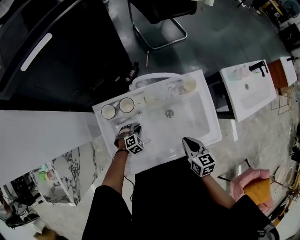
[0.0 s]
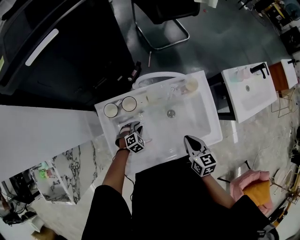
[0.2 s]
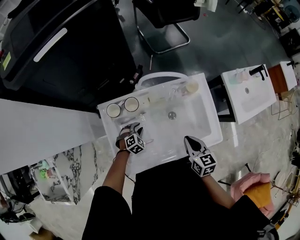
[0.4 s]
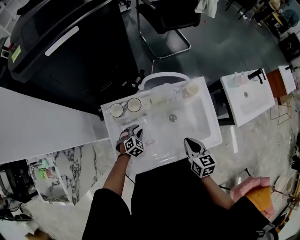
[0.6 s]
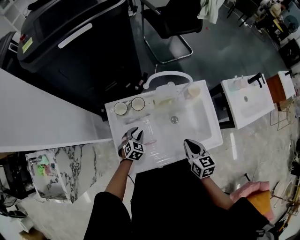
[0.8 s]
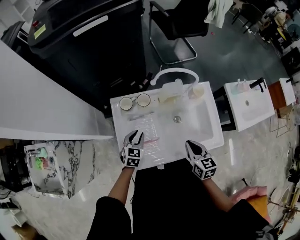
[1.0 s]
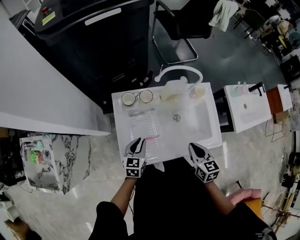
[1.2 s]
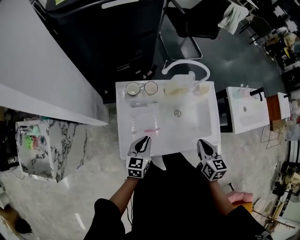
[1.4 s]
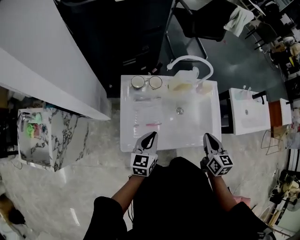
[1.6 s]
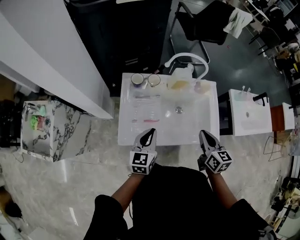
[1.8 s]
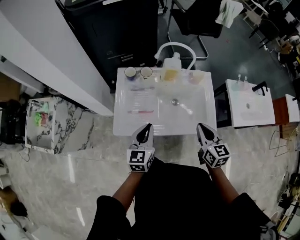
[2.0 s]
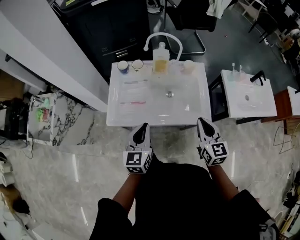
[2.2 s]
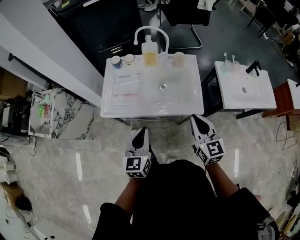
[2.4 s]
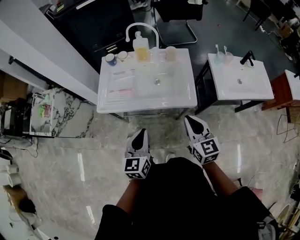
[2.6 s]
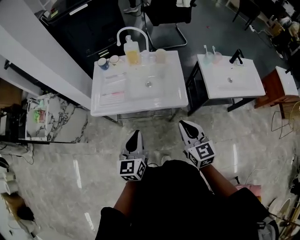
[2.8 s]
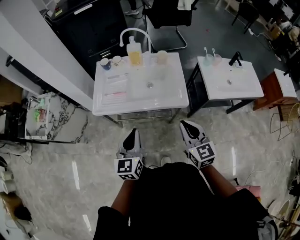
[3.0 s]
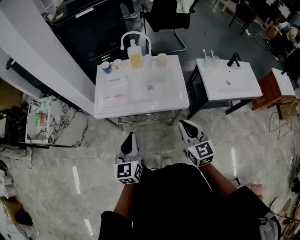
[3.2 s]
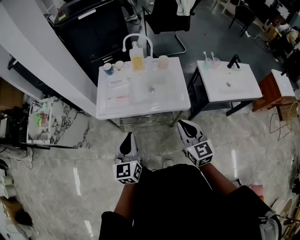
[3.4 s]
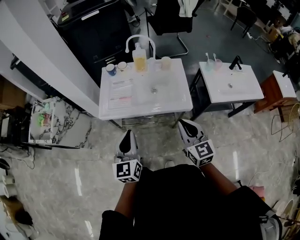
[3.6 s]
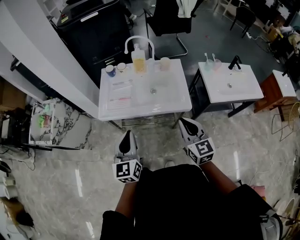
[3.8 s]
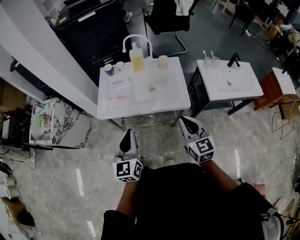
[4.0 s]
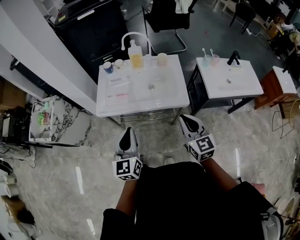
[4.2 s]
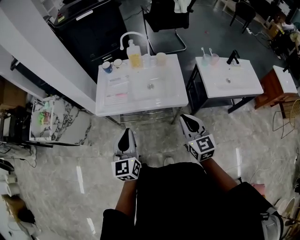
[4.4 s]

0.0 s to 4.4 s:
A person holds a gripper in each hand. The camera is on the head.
0.0 to 1.4 s: The left gripper shifts approximately 25 cm upward and backward, and rotates around the line of its fingers by some 60 degrees, counterclockwise from behind. The right gripper is displaced upward and backward by some 10 cm.
1.4 to 3.0 s: The right gripper travels backward and to the right by some 30 cm, and changes its angle by about 30 degrees, while the left gripper goes roughly 40 cm backward, to the right and upward, and changes its angle by approximately 20 degrees.
3.0 to 4.4 s: The left gripper moves roughly 5 cm.

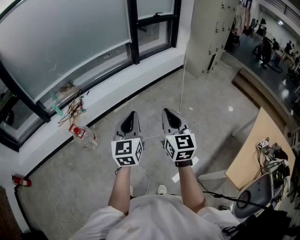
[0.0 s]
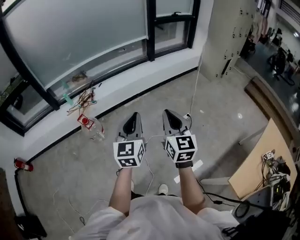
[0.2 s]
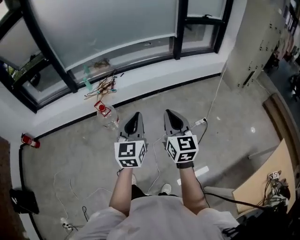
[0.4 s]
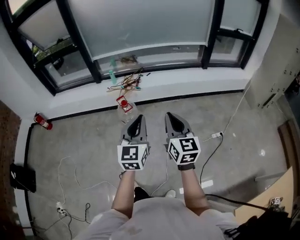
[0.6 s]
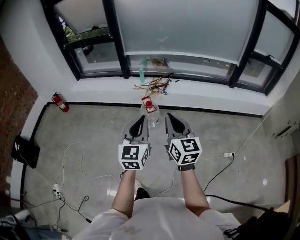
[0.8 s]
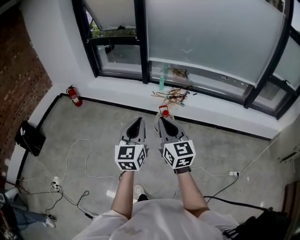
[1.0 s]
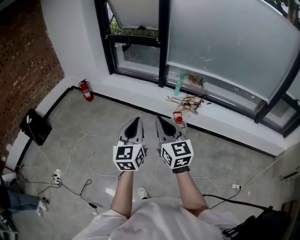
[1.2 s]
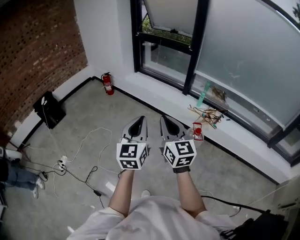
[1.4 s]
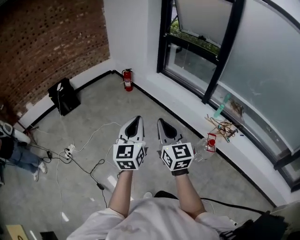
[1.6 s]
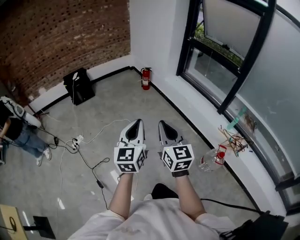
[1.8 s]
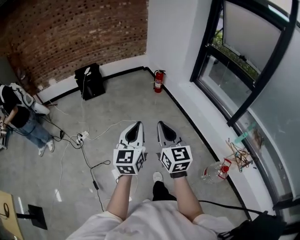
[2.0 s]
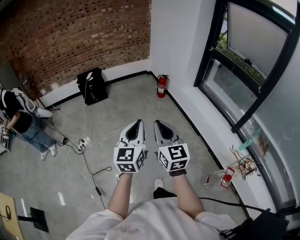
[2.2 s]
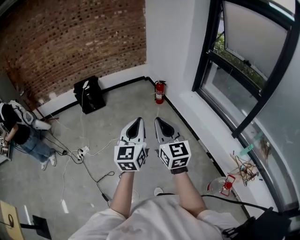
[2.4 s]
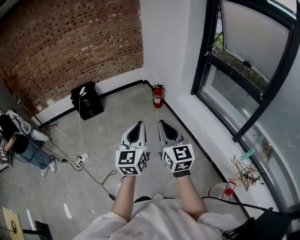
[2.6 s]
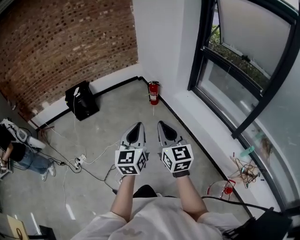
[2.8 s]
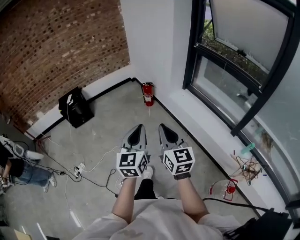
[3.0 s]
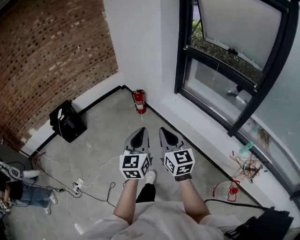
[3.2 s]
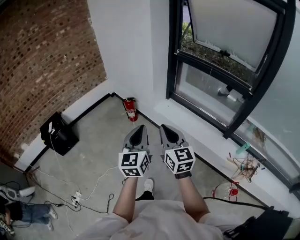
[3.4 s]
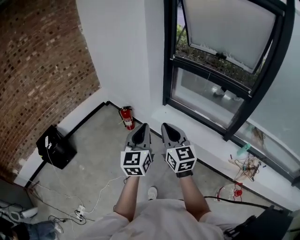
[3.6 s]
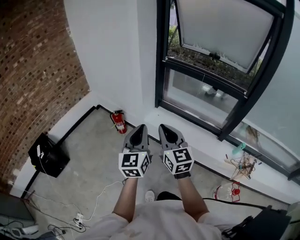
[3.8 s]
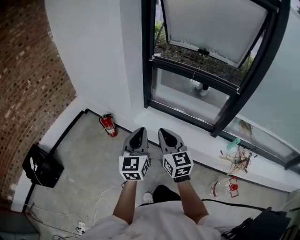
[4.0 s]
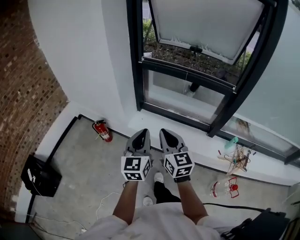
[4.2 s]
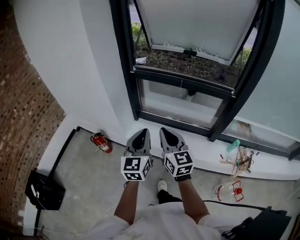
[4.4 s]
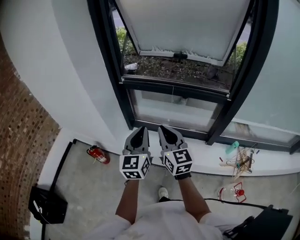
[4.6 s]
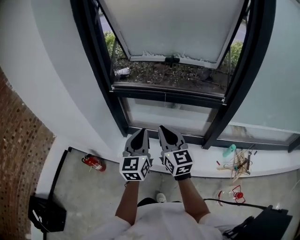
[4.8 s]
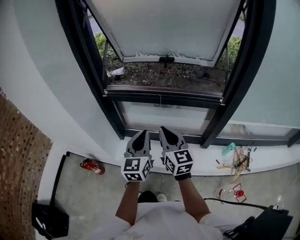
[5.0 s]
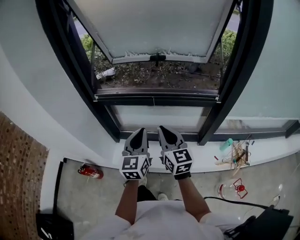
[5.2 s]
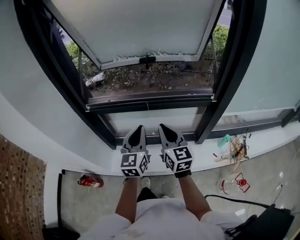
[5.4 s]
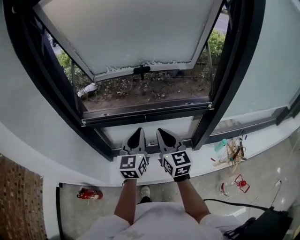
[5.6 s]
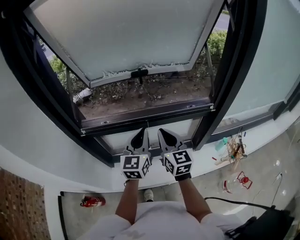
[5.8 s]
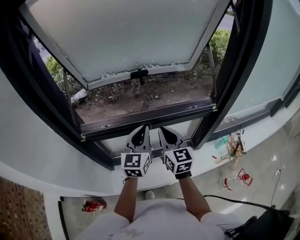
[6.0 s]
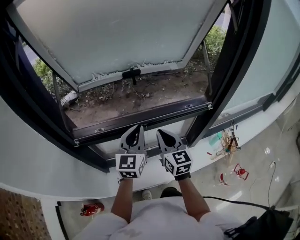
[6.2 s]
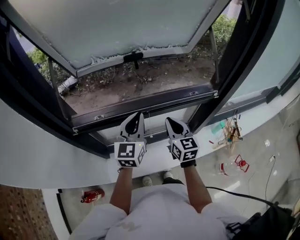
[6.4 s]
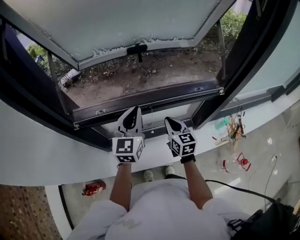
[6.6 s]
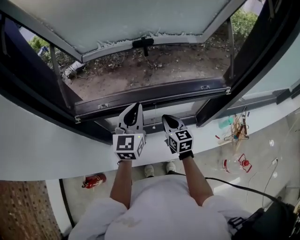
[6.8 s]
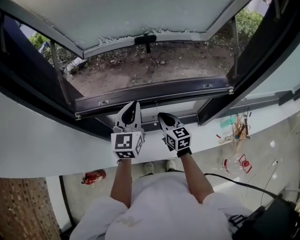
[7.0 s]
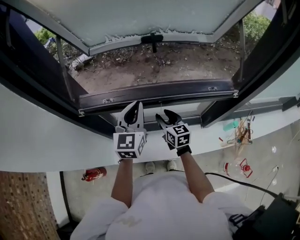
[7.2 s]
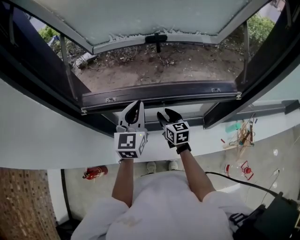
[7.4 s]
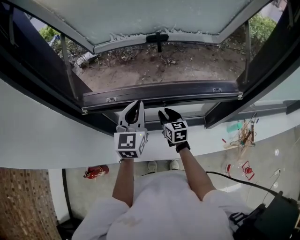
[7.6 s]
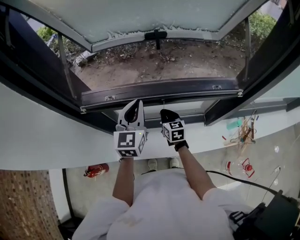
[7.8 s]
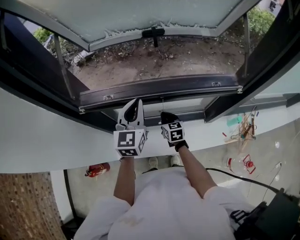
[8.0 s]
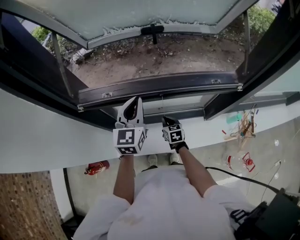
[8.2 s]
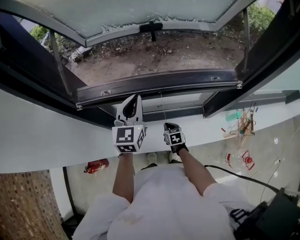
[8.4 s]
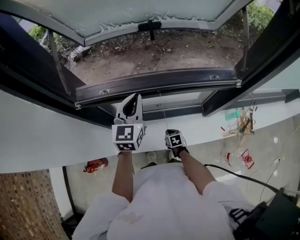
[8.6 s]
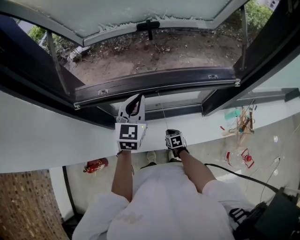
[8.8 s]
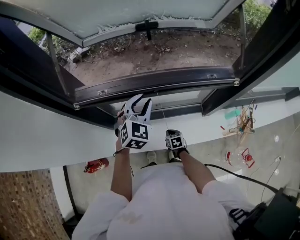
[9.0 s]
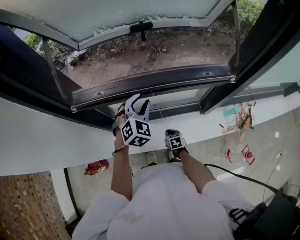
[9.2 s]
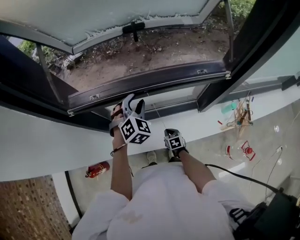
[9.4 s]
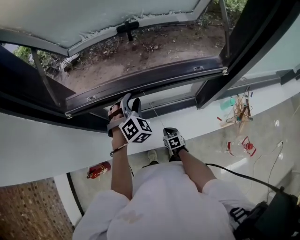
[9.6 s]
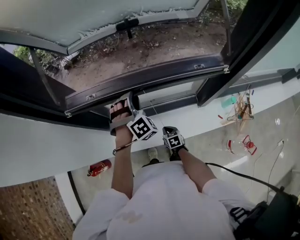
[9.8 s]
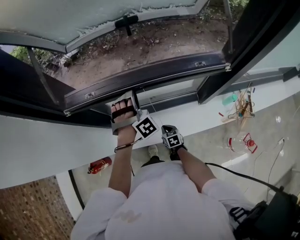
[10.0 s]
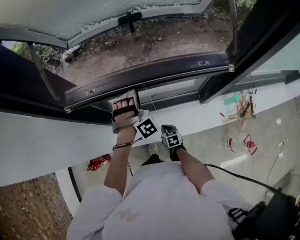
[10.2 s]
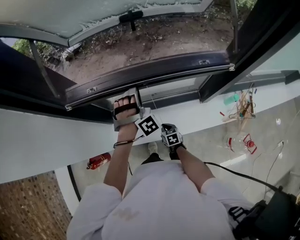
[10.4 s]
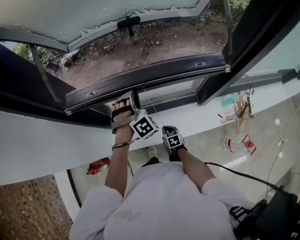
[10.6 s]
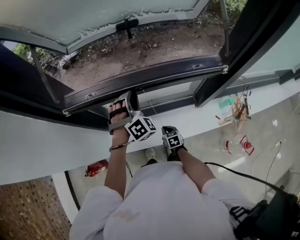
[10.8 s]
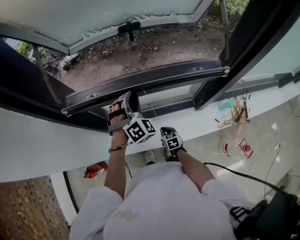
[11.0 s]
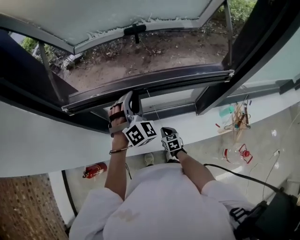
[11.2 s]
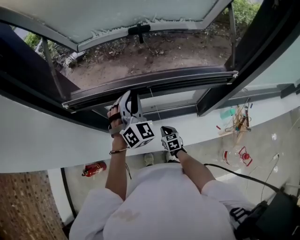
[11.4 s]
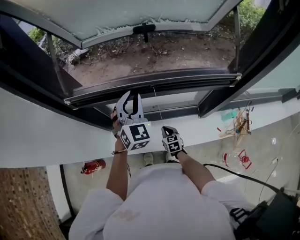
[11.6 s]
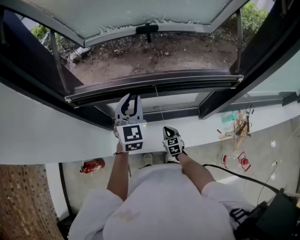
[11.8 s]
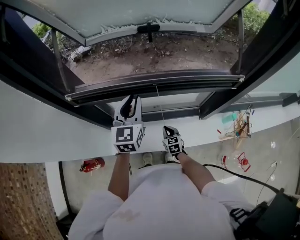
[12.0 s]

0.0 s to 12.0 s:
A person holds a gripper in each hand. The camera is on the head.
0.0 to 1.6 s: The two grippers travel together, roughly 90 cm. The left gripper swivels some 80 degrees. Meanwhile the right gripper rotates some 80 degrees.
1.6 to 3.0 s: The two grippers travel together, forward, roughly 40 cm.
3.0 to 4.4 s: Both grippers are carried about 50 cm. The right gripper changes its angle by approximately 40 degrees, while the left gripper changes its angle by roughly 40 degrees.
4.4 to 6.0 s: The pair of grippers is taken approximately 40 cm. The right gripper rotates some 30 degrees, while the left gripper swivels approximately 30 degrees.
6.0 to 7.6 s: The left gripper shifts about 10 cm to the left and forward; the right gripper goes about 25 cm downward and forward, turns by approximately 20 degrees, and opens.
7.6 to 9.0 s: The right gripper travels downward and backward by some 25 cm, rotates roughly 30 degrees, and closes its fingers, while the left gripper moves downward and to the right, about 10 cm, and changes its angle by approximately 30 degrees.
9.0 to 10.4 s: The left gripper heads downward, covering some 5 cm, and twists some 50 degrees clockwise, seen from behind.
10.4 to 12.0 s: The left gripper is displaced upward and to the left by approximately 10 cm, and rotates around the line of its fingers by approximately 80 degrees, counterclockwise from behind. The right gripper travels upward by roughly 5 cm.

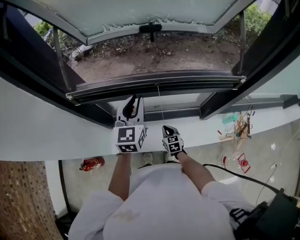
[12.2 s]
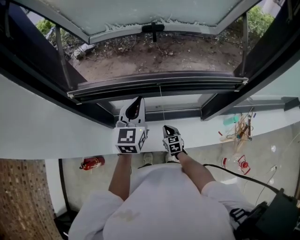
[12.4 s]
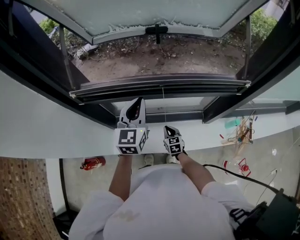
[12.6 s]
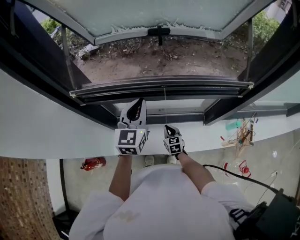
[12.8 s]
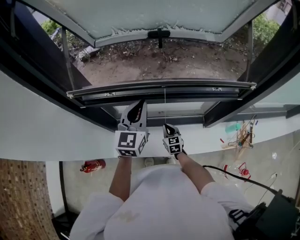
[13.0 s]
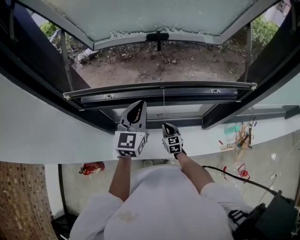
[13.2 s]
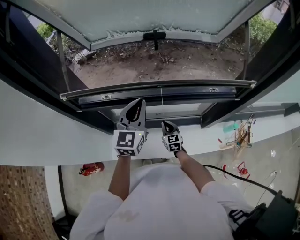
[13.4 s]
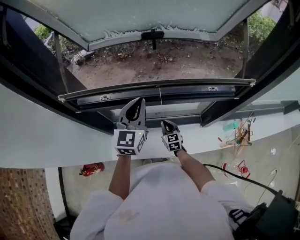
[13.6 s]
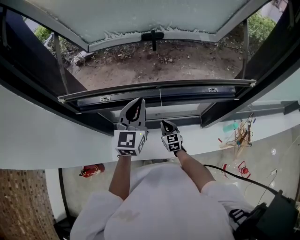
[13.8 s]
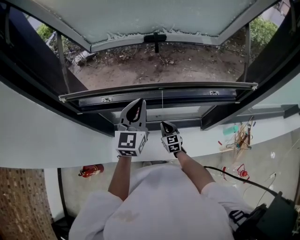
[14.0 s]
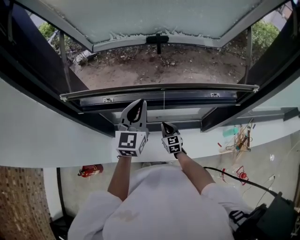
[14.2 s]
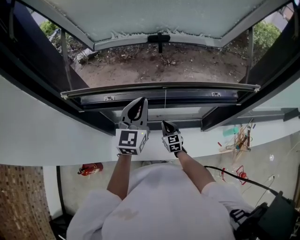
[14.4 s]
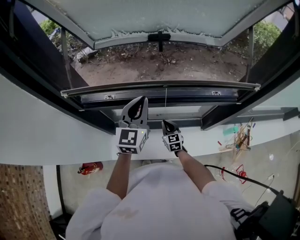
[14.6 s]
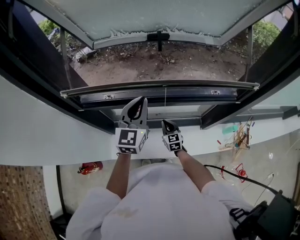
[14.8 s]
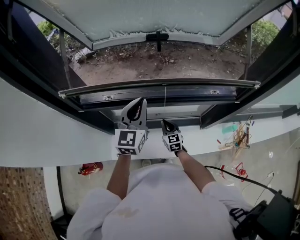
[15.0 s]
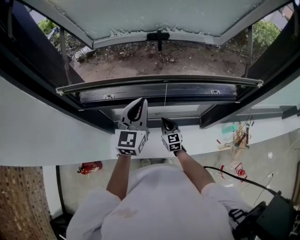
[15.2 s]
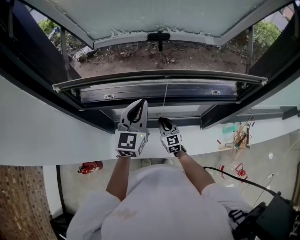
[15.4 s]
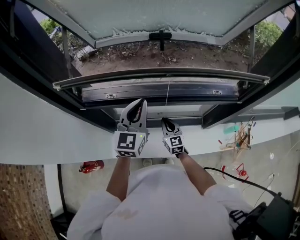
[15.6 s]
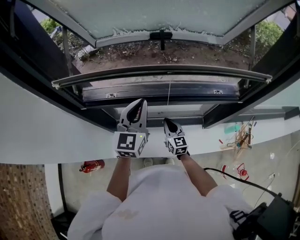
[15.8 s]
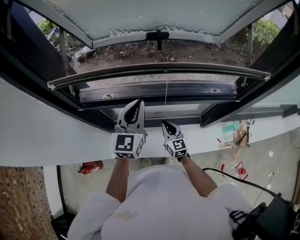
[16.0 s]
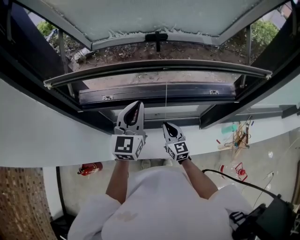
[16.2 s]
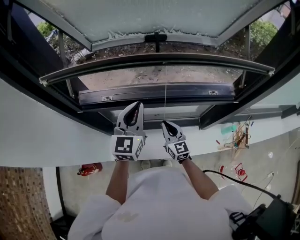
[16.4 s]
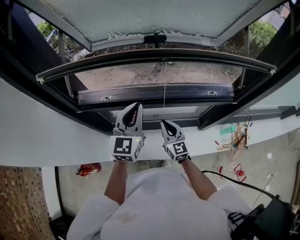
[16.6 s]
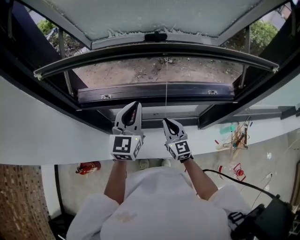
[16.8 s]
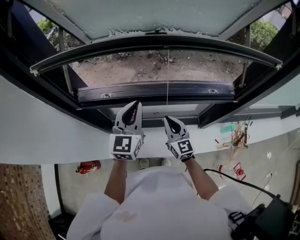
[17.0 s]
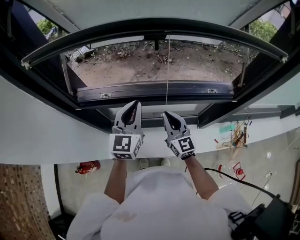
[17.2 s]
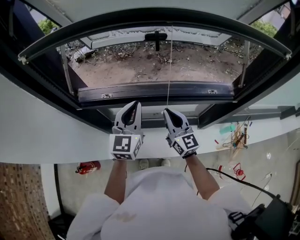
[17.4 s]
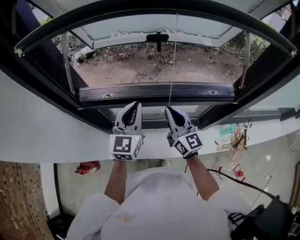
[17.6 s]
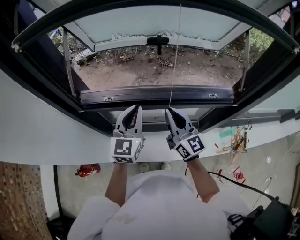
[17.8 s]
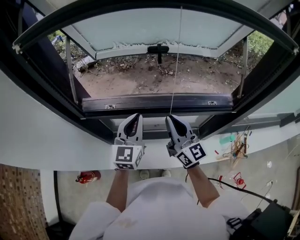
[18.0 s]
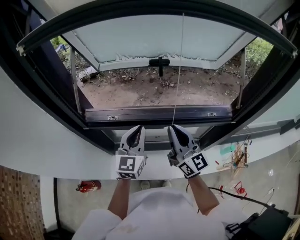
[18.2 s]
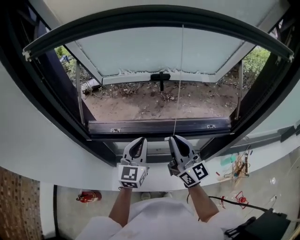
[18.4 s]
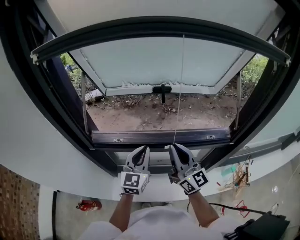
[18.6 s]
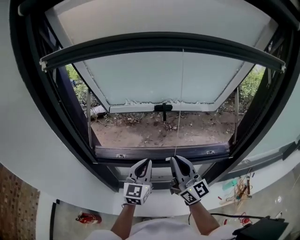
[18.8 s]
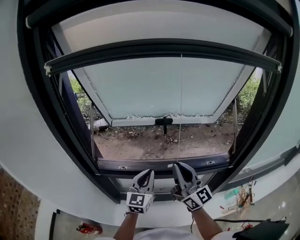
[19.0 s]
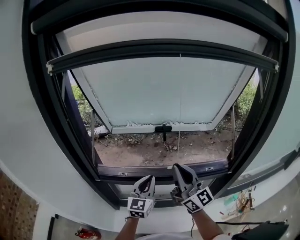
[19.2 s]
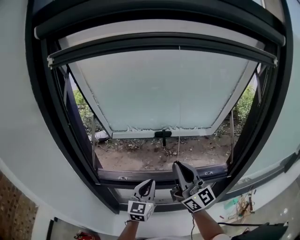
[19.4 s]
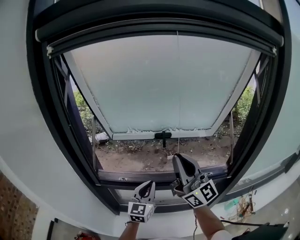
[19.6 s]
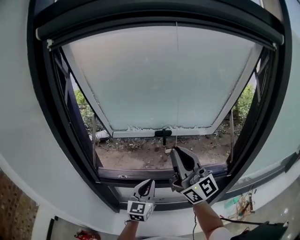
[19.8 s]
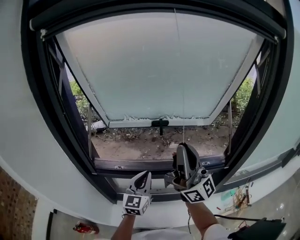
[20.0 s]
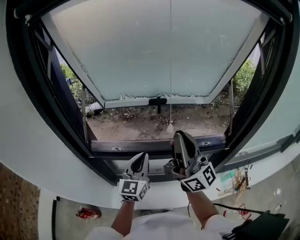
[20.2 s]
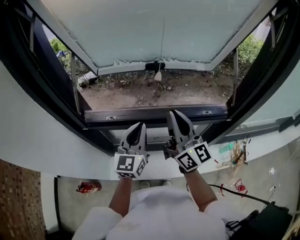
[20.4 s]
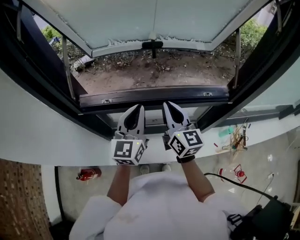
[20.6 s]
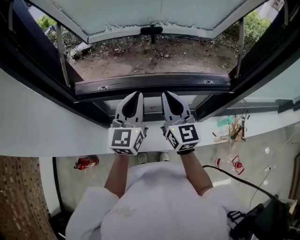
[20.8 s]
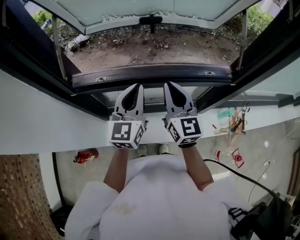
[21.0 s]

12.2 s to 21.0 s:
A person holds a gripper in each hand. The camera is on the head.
12.2 to 13.6 s: The right gripper travels forward by approximately 10 cm.
13.6 to 15.2 s: The grippers stay close to where they were, moving slightly.
15.2 to 16.6 s: The right gripper is displaced upward by approximately 10 cm.
16.6 to 18.0 s: The right gripper moves upward, approximately 20 cm, and rotates about 20 degrees.
18.0 to 19.6 s: The right gripper heads upward, covering some 25 cm, and turns by about 30 degrees.
19.6 to 21.0 s: The right gripper shifts approximately 20 cm downward, and points its fingers roughly 40 degrees further downward.
